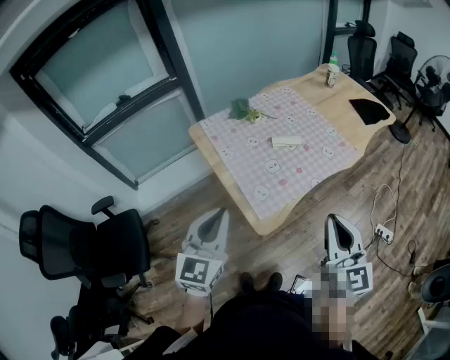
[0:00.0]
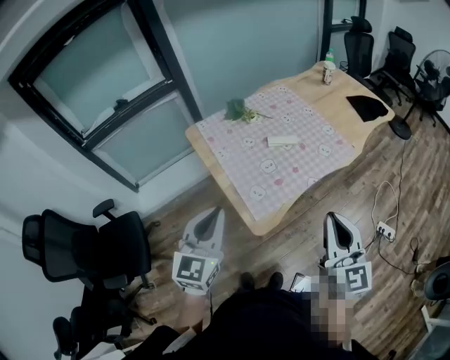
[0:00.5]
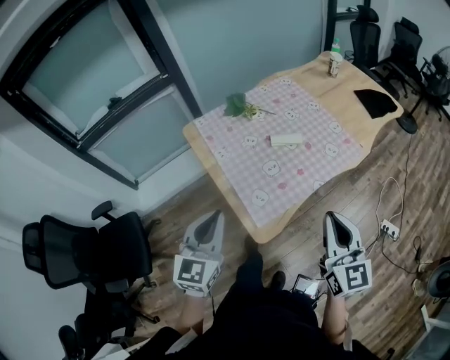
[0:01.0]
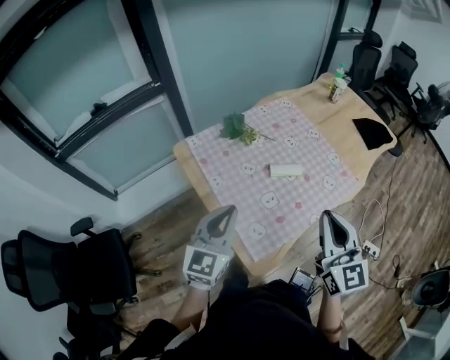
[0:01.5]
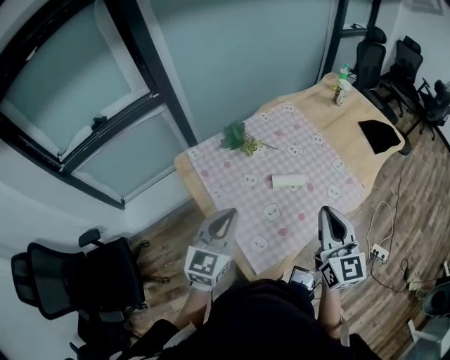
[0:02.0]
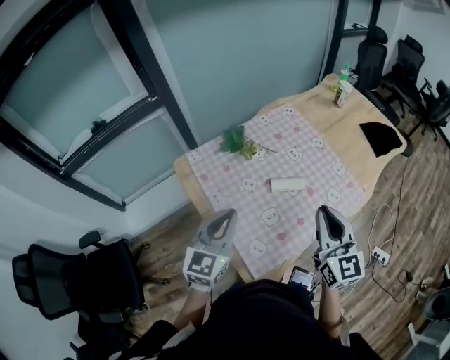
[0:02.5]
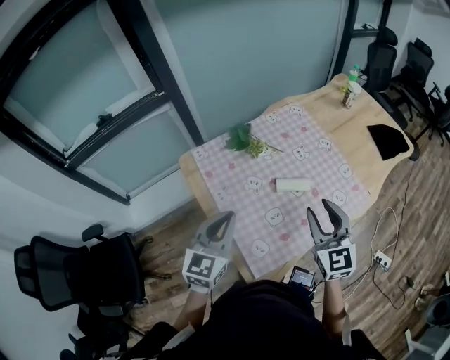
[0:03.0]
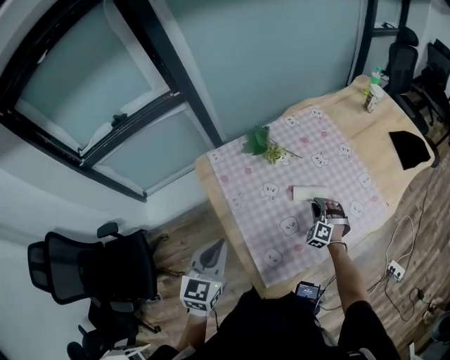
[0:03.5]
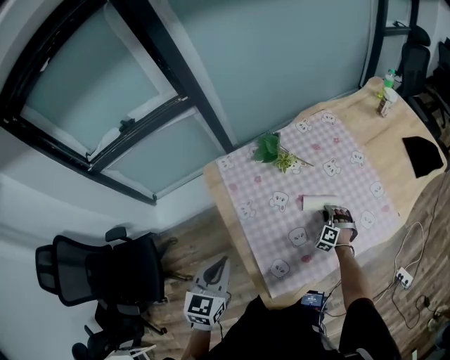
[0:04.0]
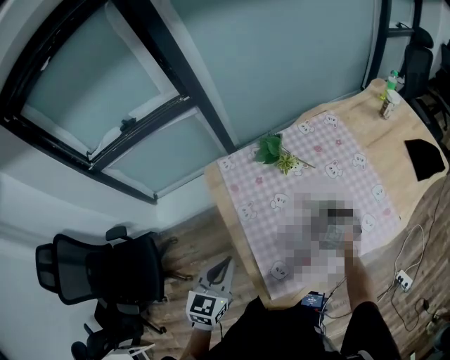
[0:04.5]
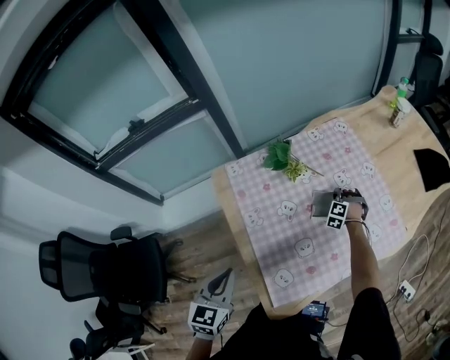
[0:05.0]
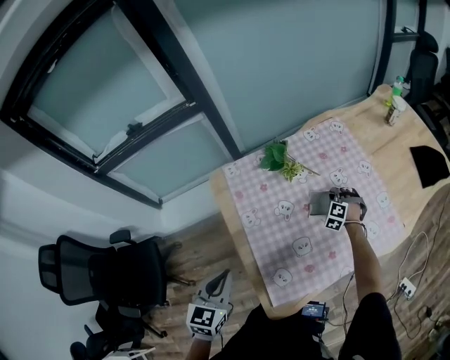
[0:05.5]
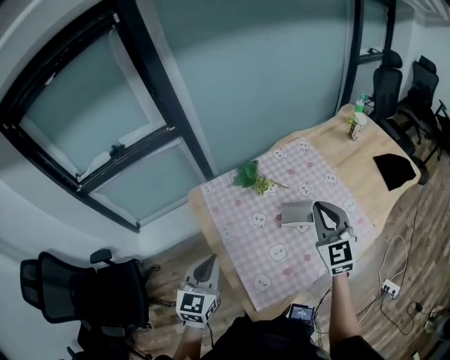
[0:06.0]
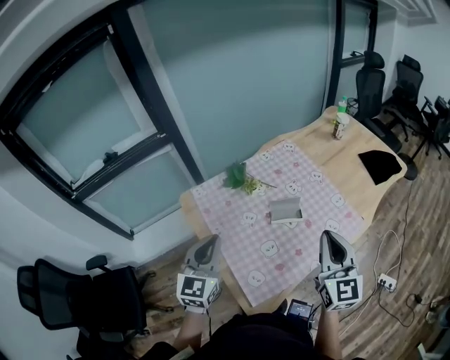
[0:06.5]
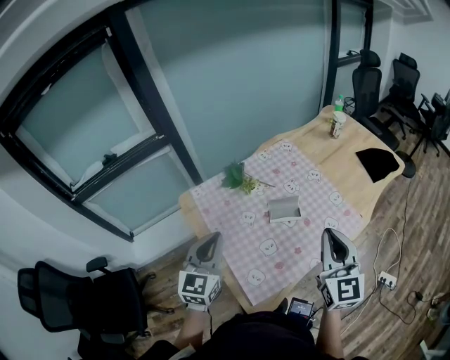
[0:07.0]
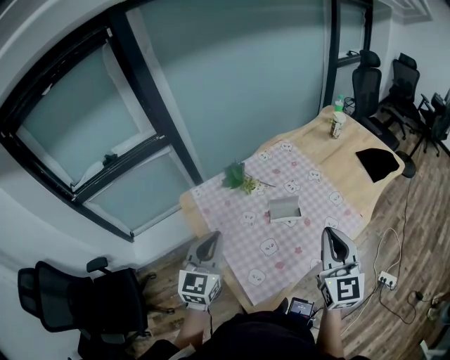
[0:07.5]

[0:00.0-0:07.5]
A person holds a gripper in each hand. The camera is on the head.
0:00.0 to 0:02.0: Both grippers travel together forward, approximately 30 cm.
0:02.0 to 0:04.0: The right gripper heads downward and forward, covering about 50 cm, rotates around the line of its fingers by about 70 degrees, counterclockwise from behind, and opens up, while the left gripper travels to the left and downward by approximately 10 cm, and turns by about 20 degrees.
0:04.0 to 0:05.5: The right gripper heads forward, covering some 10 cm.
0:05.5 to 0:07.5: The left gripper travels upward, to the right and forward by roughly 15 cm, and changes its angle by about 20 degrees. Meanwhile the right gripper is displaced upward and backward by approximately 50 cm, and tips its fingers upward by some 50 degrees.

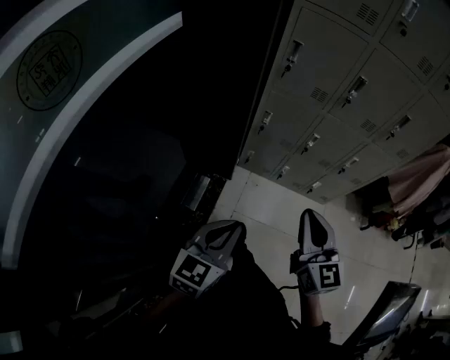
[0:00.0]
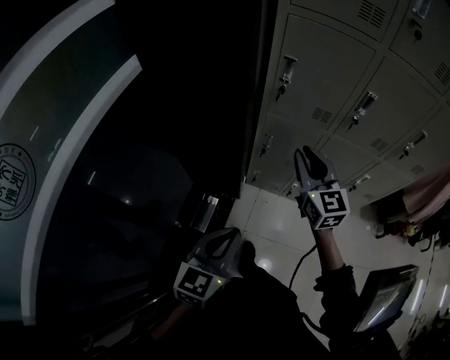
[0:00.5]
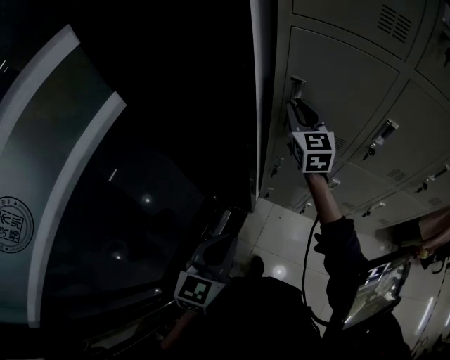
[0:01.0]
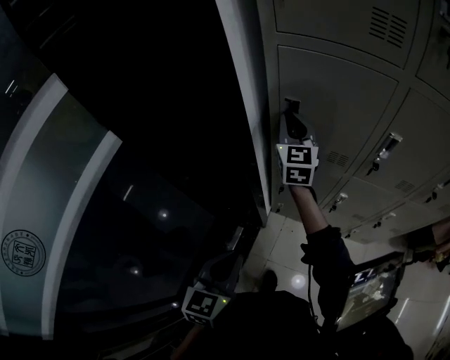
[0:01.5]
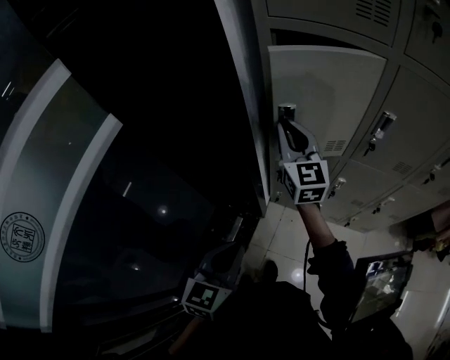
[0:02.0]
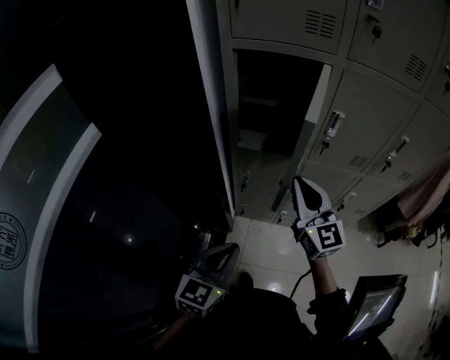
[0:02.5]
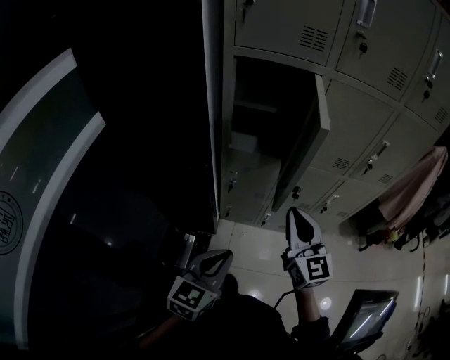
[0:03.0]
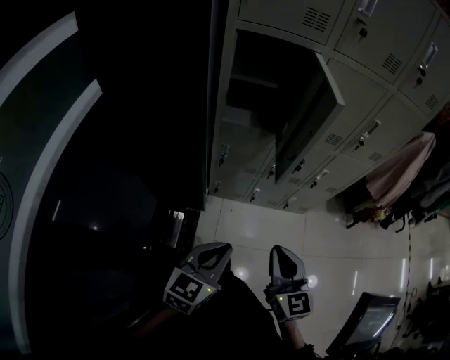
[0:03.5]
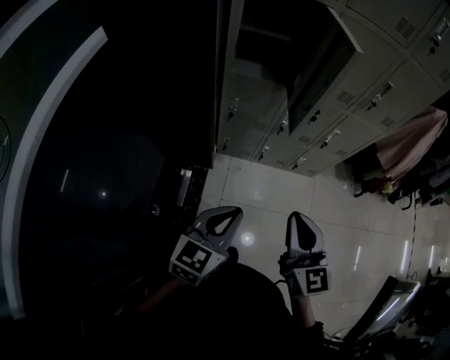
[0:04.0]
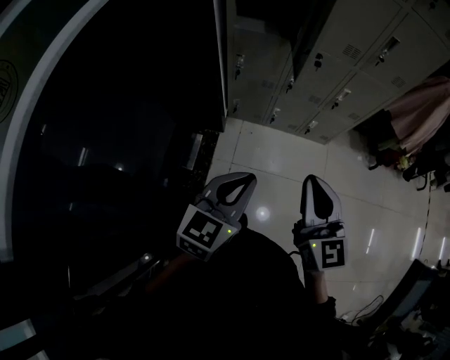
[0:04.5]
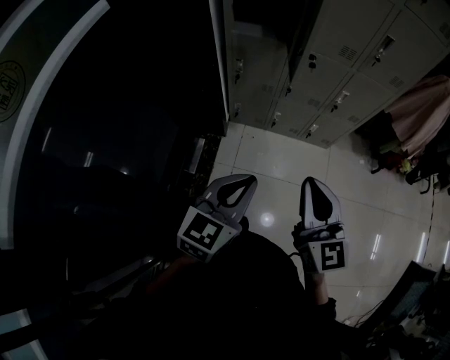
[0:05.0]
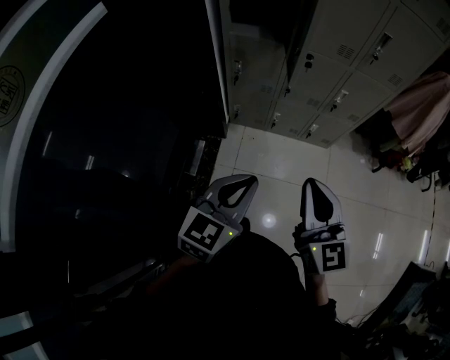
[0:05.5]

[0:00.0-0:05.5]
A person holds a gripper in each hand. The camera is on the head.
0:00.0 to 0:02.0: The left gripper is displaced forward by about 25 cm, while the right gripper is displaced forward by about 50 cm.
0:02.0 to 0:03.5: The left gripper heads backward and to the right, covering roughly 15 cm, and turns by about 30 degrees, while the right gripper goes about 40 cm backward, and rotates roughly 20 degrees.
0:03.5 to 0:05.5: The right gripper goes approximately 15 cm backward and to the right. Meanwhile the left gripper shifts approximately 15 cm to the right and backward.

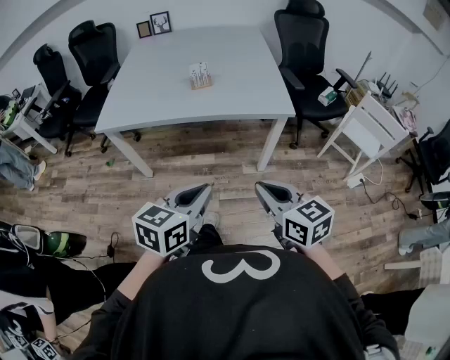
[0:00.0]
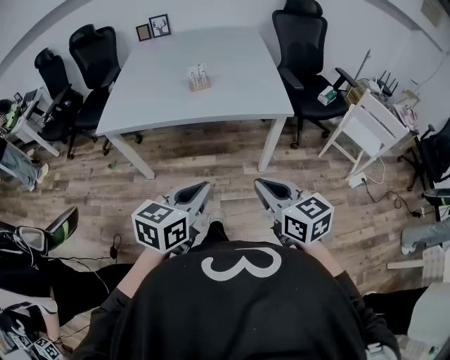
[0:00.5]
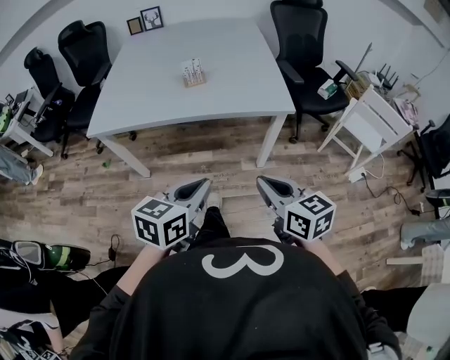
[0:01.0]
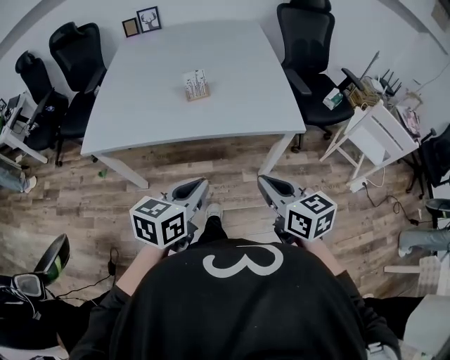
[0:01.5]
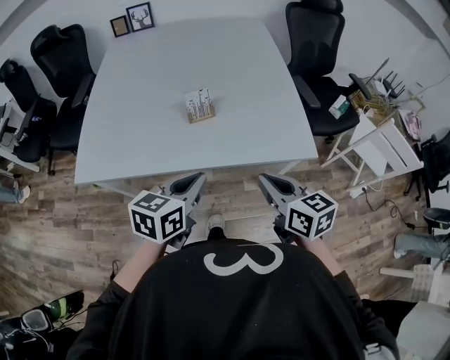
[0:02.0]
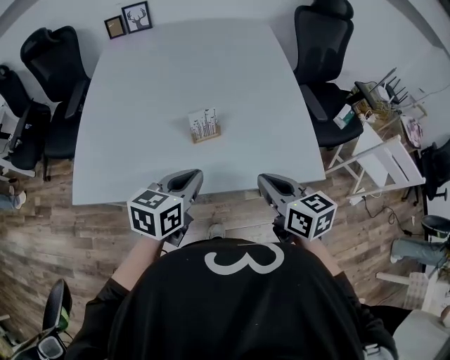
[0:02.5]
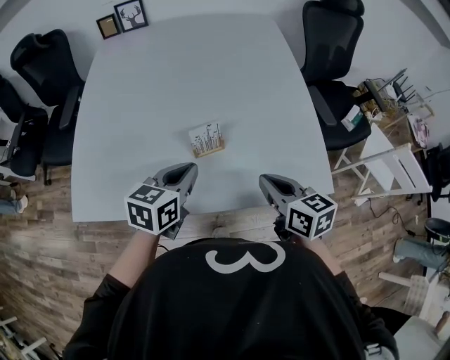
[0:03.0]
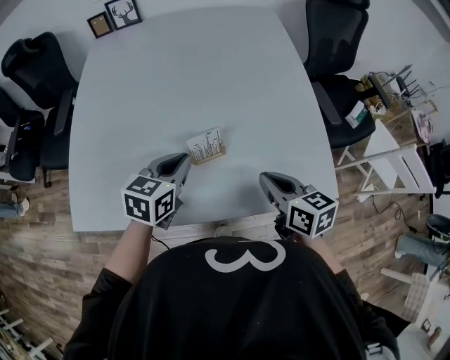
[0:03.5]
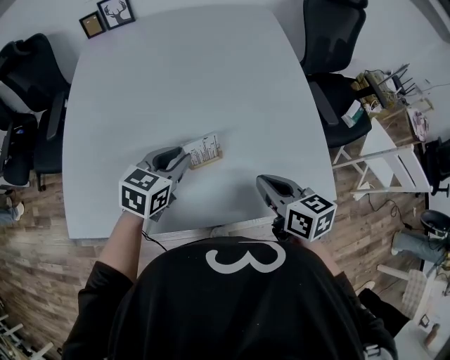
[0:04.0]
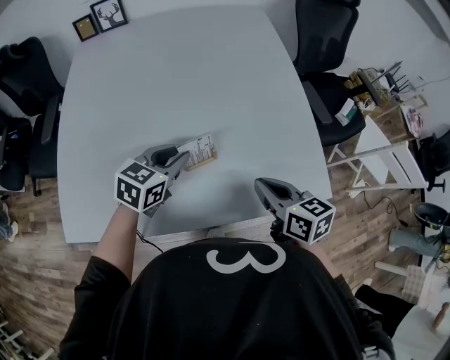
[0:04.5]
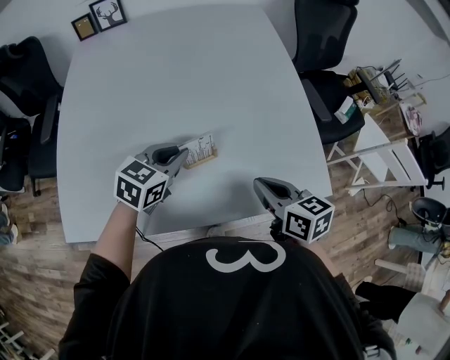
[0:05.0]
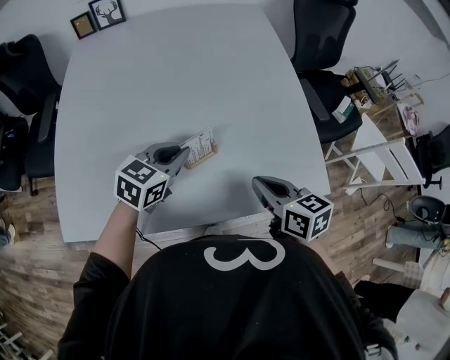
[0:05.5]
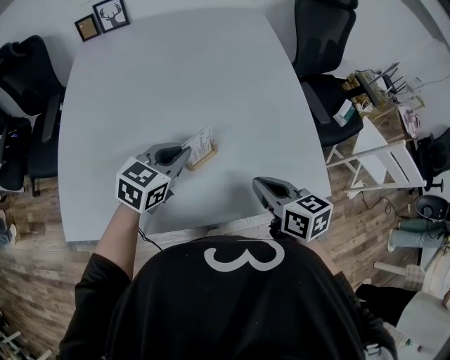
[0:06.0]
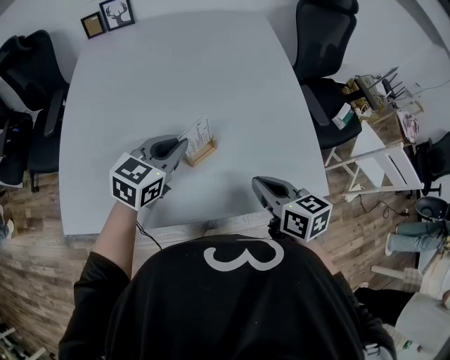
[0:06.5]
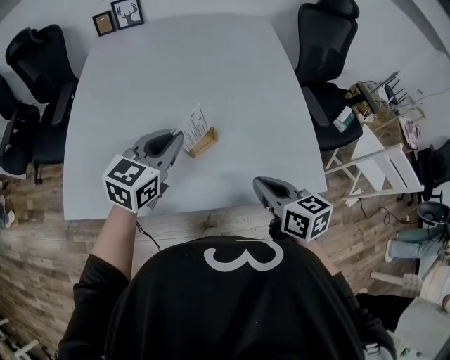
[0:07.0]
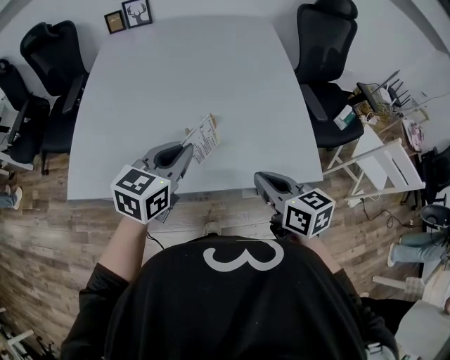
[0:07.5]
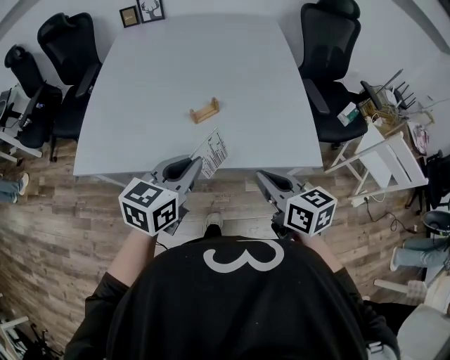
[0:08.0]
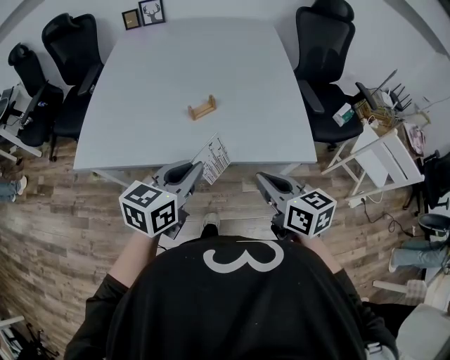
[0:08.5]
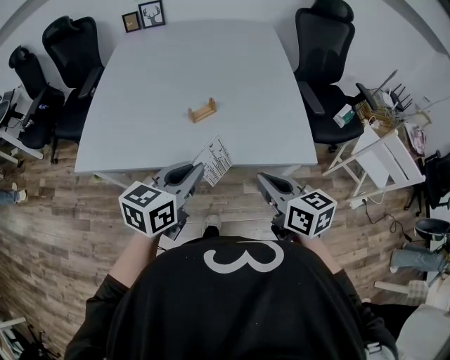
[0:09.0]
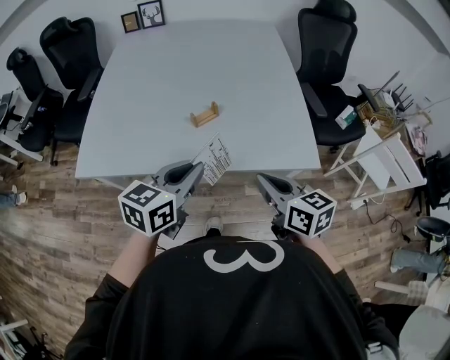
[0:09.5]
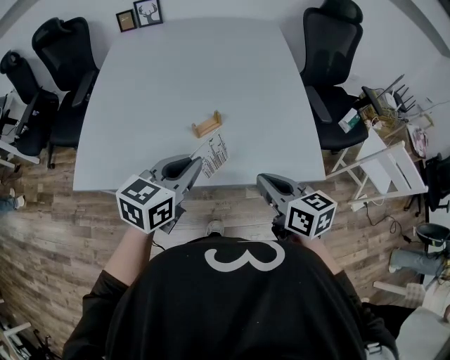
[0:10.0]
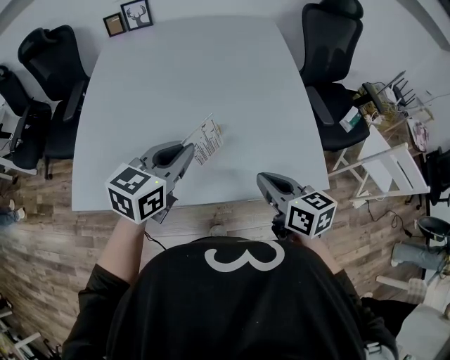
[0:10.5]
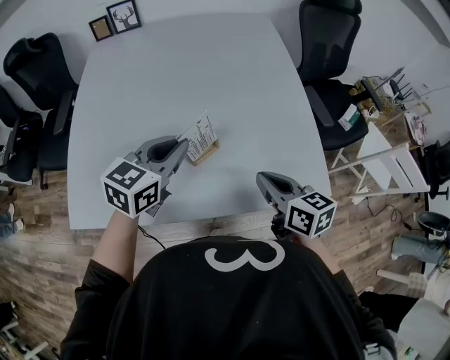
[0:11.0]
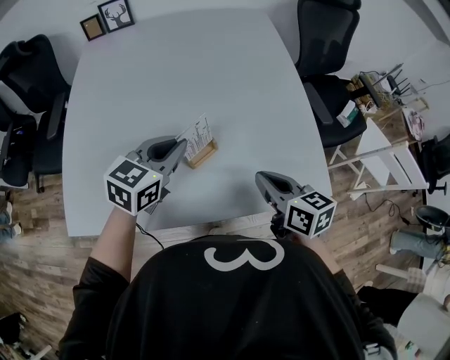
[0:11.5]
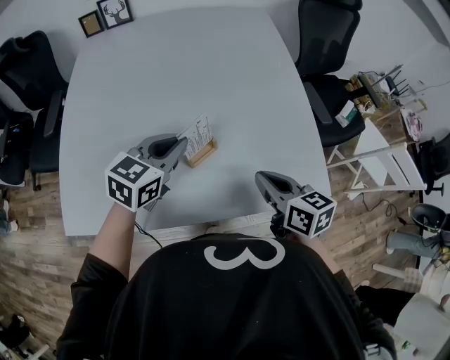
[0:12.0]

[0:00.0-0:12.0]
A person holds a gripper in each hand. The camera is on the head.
0:00.0 to 0:02.0: Both grippers move forward, about 30 cm.
0:02.0 to 0:04.0: Both grippers move forward, some 25 cm.
0:04.0 to 0:06.0: The grippers make only small movements.
0:06.0 to 0:08.0: Both grippers move backward, approximately 20 cm.
0:08.0 to 0:10.0: The left gripper goes approximately 5 cm forward.
0:10.0 to 0:12.0: The left gripper is displaced forward by roughly 15 cm. Meanwhile the right gripper moves forward, roughly 10 cm.

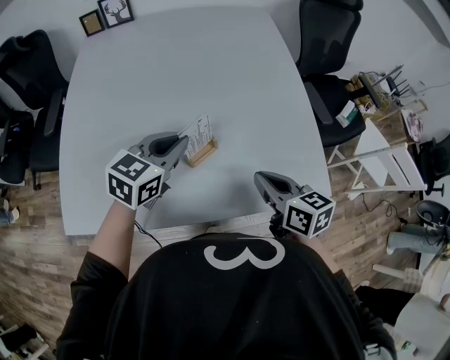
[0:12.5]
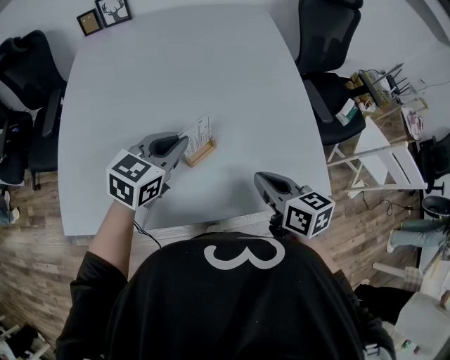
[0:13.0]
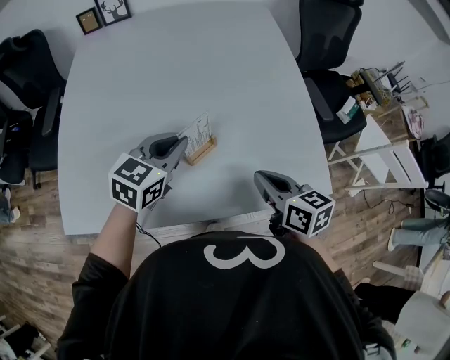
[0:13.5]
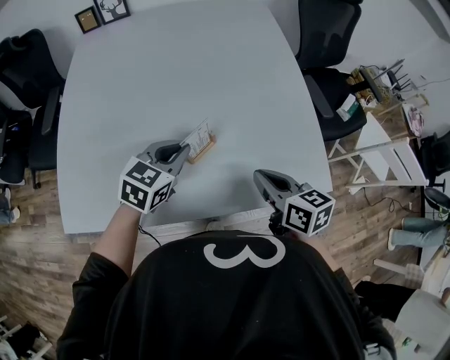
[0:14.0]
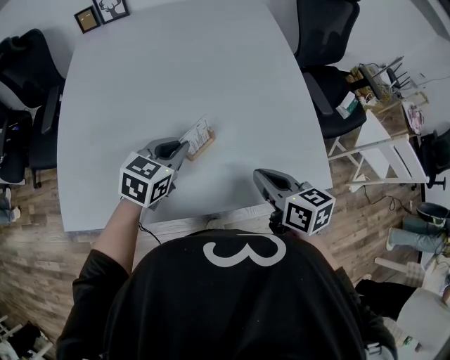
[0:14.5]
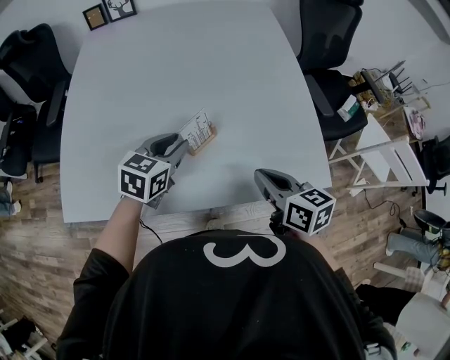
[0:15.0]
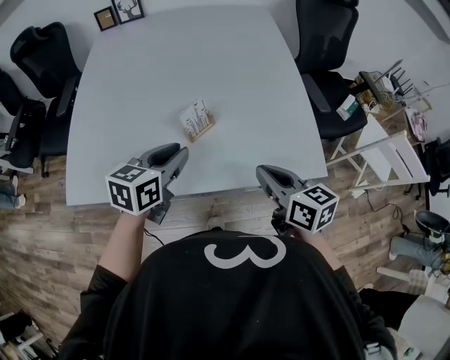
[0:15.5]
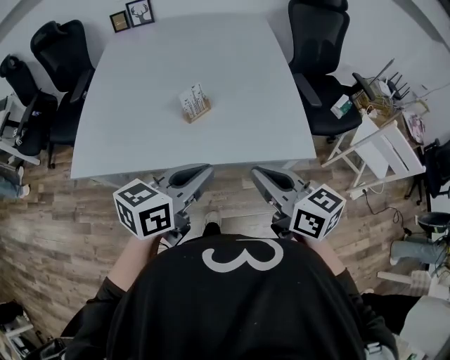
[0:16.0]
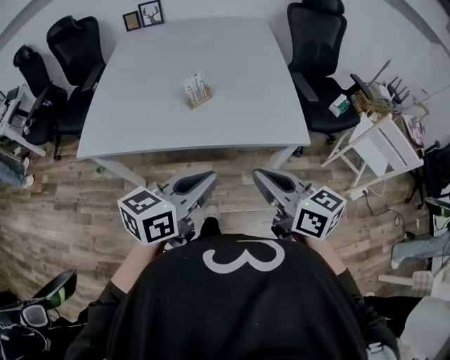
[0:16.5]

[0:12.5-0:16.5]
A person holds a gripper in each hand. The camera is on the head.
0:12.5 to 0:14.5: The left gripper moves downward, about 5 cm.
0:14.5 to 0:16.5: The right gripper moves backward and upward, about 25 cm, and turns by about 20 degrees, while the left gripper heads backward, covering roughly 35 cm, and changes its angle by about 30 degrees.
